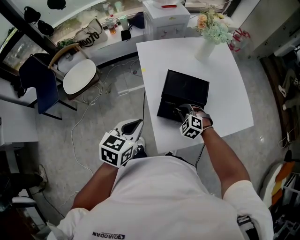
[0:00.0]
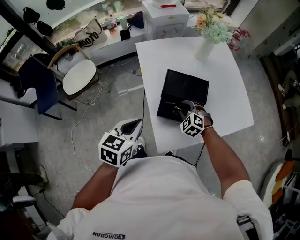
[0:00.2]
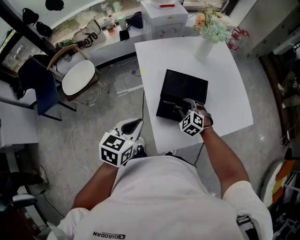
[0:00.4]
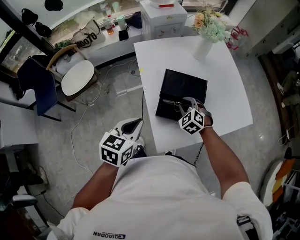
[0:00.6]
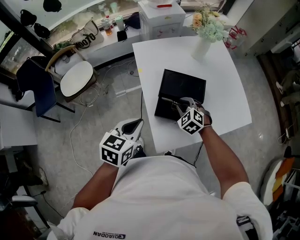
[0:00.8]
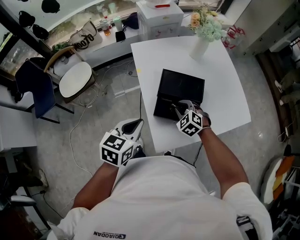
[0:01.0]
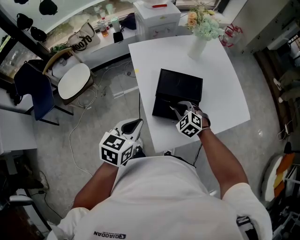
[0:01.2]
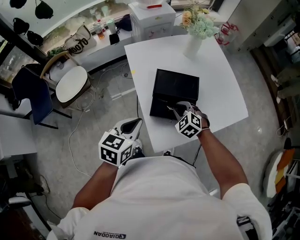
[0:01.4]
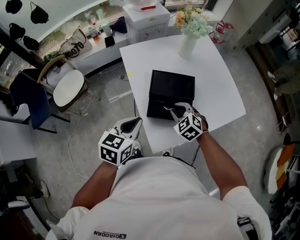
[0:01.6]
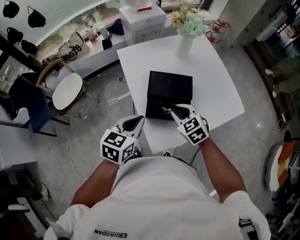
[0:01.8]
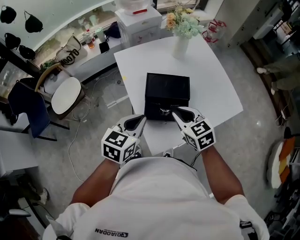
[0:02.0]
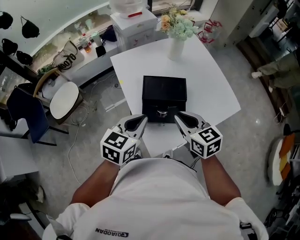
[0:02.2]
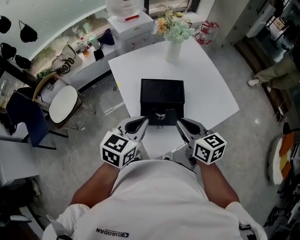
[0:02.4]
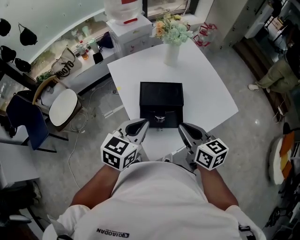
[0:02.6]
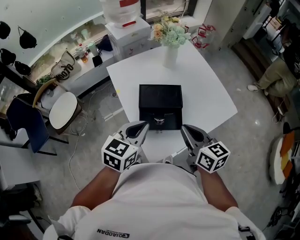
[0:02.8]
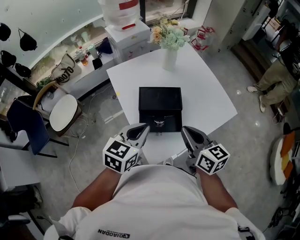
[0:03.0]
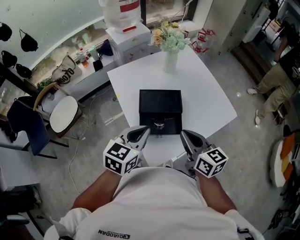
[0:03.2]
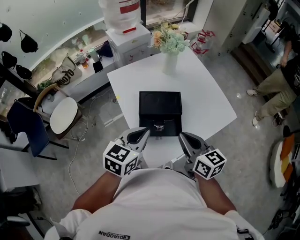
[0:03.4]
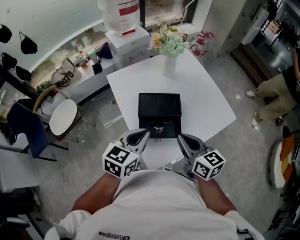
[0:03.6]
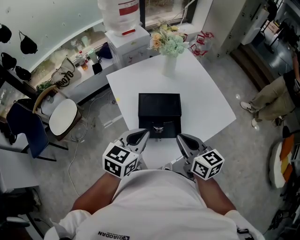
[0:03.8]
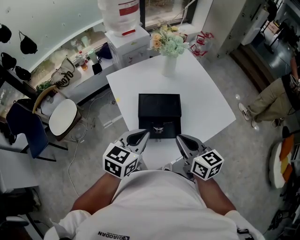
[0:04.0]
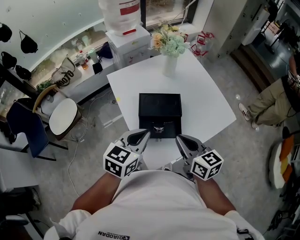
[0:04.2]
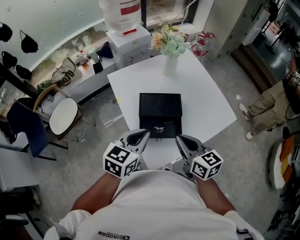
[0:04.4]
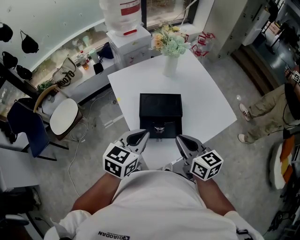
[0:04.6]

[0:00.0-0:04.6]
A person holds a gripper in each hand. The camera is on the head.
0:00.0 to 0:01.6: The right gripper moves upward, some 10 cm, and swivels roughly 20 degrees.
0:01.6 to 0:03.0: The left gripper shifts some 10 cm to the right and upward. Meanwhile the right gripper travels upward and to the right by roughly 20 cm, rolls clockwise, seen from behind, by approximately 50 degrees, and closes up.
0:03.0 to 0:04.6: The grippers stay close to where they were, moving slightly.

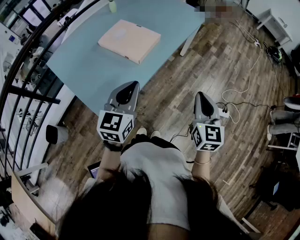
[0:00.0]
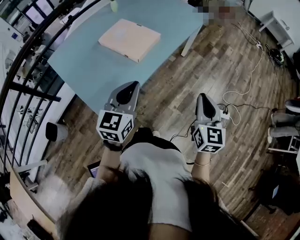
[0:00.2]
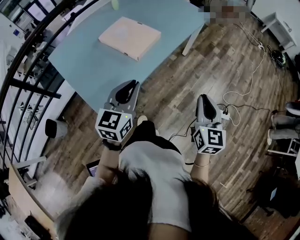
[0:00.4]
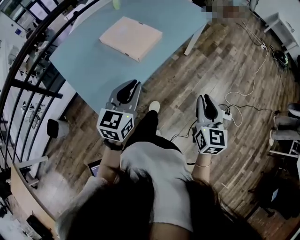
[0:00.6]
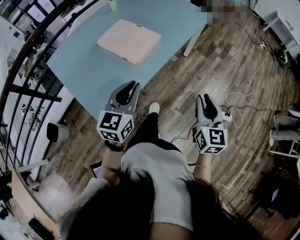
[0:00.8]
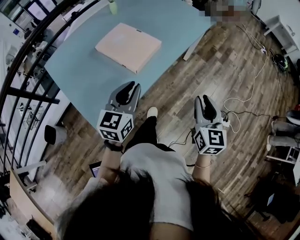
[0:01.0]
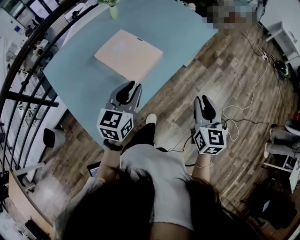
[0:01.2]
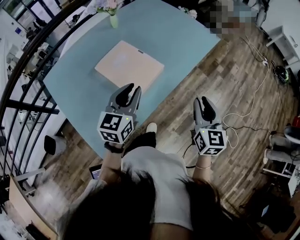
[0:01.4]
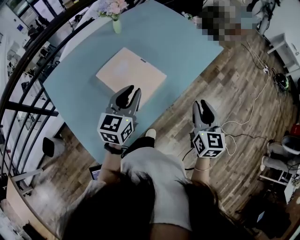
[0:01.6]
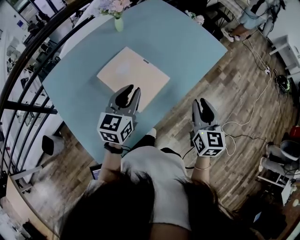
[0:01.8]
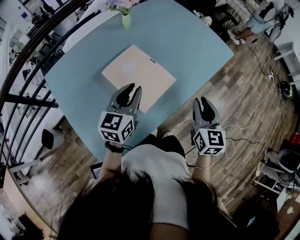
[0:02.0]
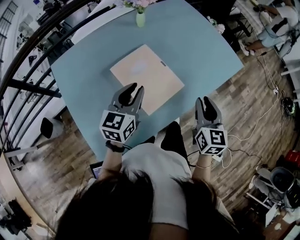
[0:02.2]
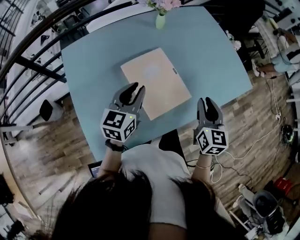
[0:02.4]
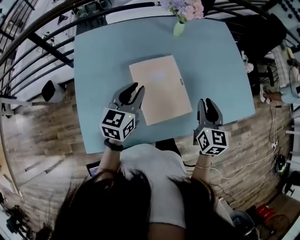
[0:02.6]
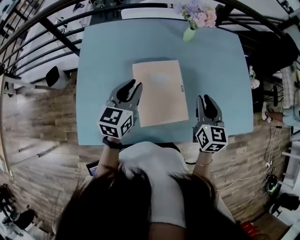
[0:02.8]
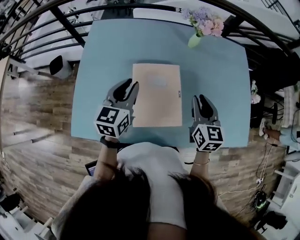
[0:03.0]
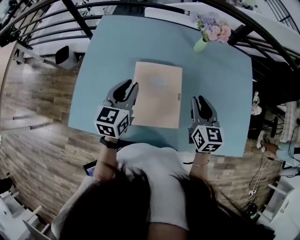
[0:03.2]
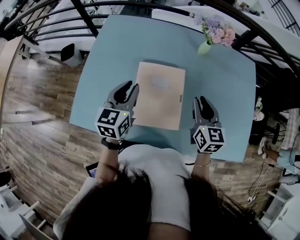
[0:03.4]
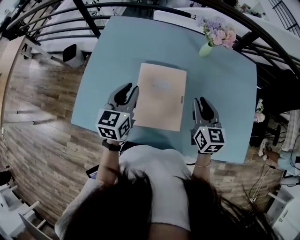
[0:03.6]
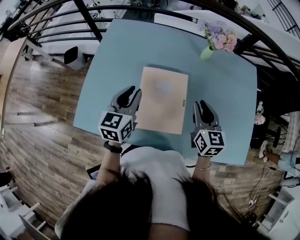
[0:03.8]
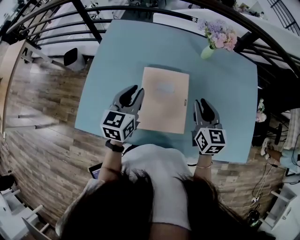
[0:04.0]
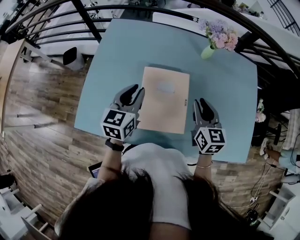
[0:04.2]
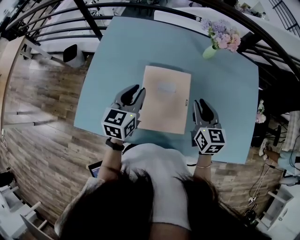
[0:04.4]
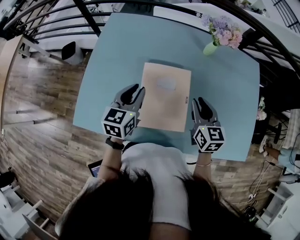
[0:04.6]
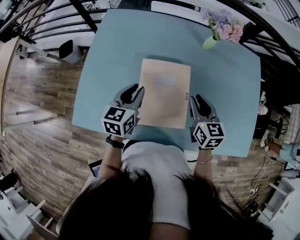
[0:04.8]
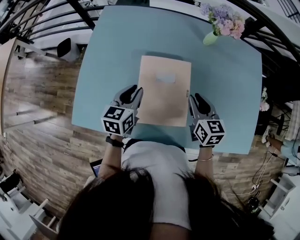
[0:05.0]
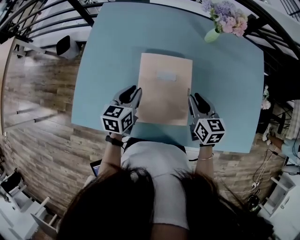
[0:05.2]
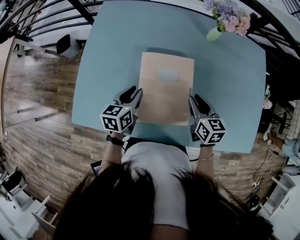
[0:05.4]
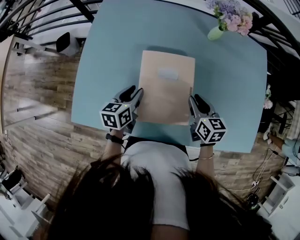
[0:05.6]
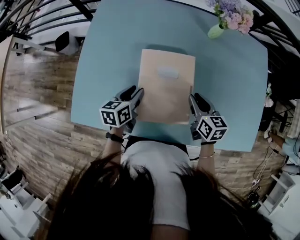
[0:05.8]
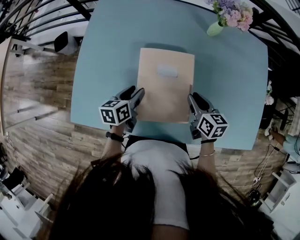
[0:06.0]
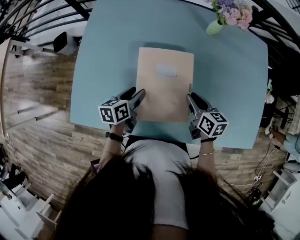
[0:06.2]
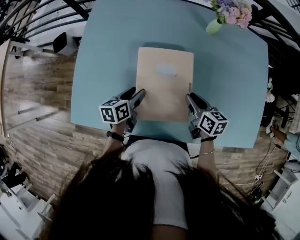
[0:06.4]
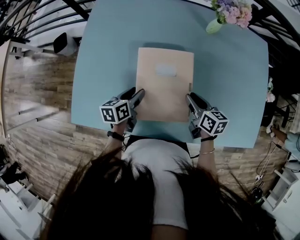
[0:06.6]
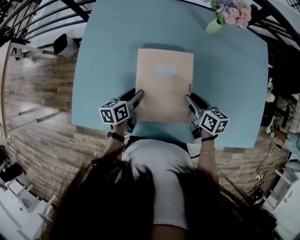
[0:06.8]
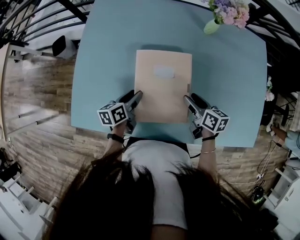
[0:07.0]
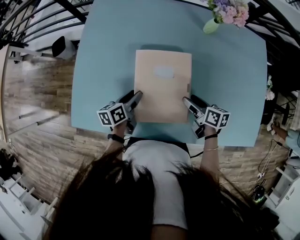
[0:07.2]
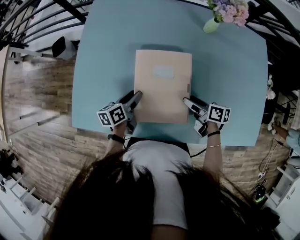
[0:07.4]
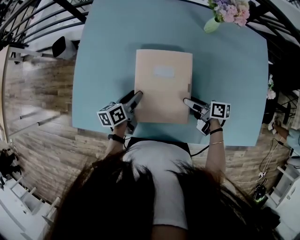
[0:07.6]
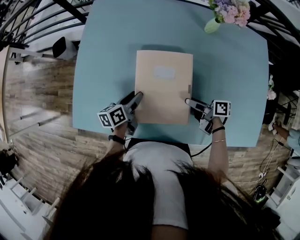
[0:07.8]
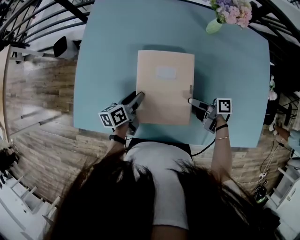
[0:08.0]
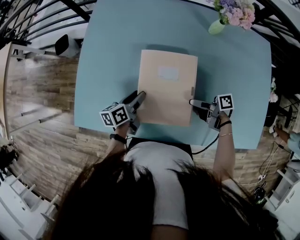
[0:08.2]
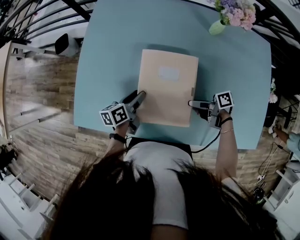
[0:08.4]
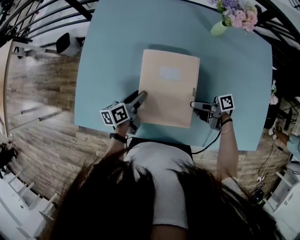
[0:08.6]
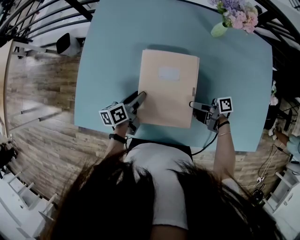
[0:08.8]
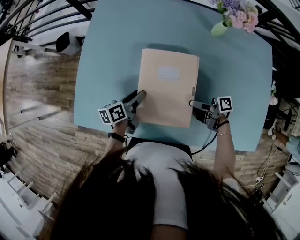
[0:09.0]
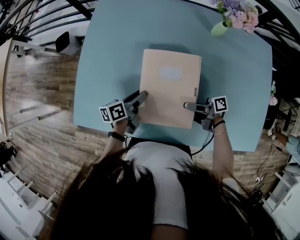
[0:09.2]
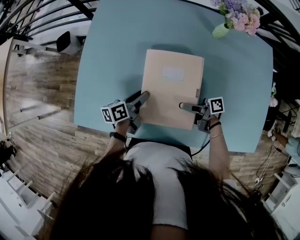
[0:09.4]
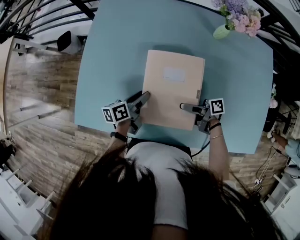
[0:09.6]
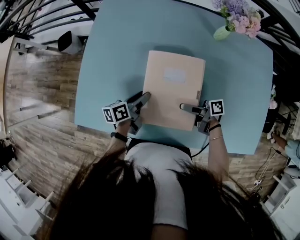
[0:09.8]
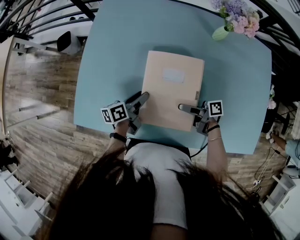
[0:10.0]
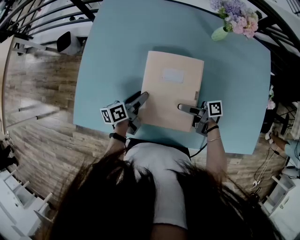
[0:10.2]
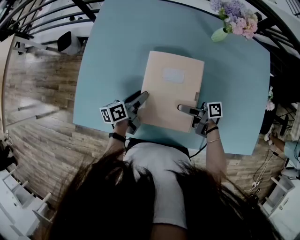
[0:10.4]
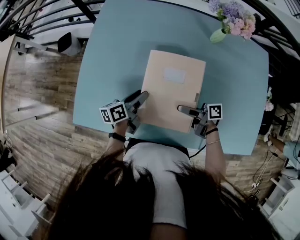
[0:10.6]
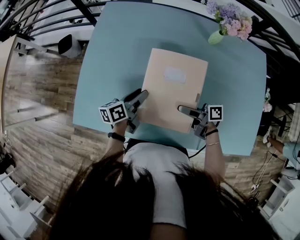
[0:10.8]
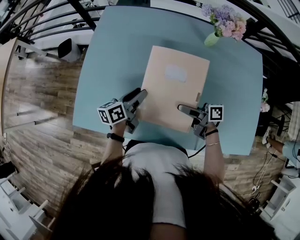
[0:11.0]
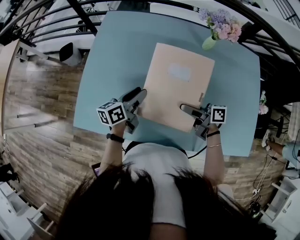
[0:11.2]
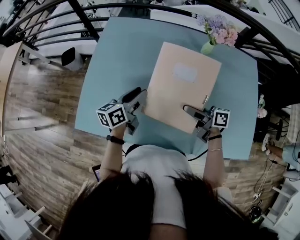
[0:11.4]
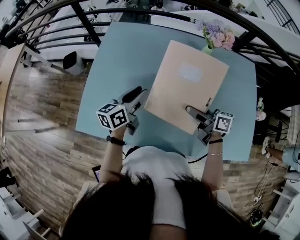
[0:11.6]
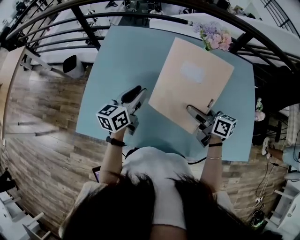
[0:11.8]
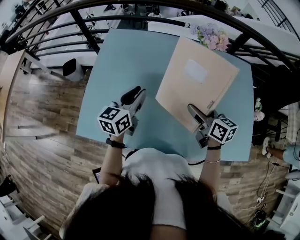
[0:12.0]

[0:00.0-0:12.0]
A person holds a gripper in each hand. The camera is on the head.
0:00.0 to 0:01.6: Both grippers move forward, about 25 cm.
0:01.6 to 0:03.0: The right gripper shifts by roughly 35 cm, and rotates approximately 50 degrees; the left gripper moves about 15 cm, and rotates about 50 degrees.
0:03.0 to 0:04.4: The grippers stay close to where they were, moving slightly.
0:04.4 to 0:06.0: The grippers both shift downward by approximately 15 cm. The left gripper changes its angle by some 30 degrees, and opens up. The right gripper rotates approximately 20 degrees.
0:06.0 to 0:07.6: The right gripper travels downward by roughly 5 cm, turns by about 40 degrees, and opens.
0:07.6 to 0:09.0: The right gripper changes its angle by roughly 30 degrees.
0:09.0 to 0:10.4: The right gripper heads to the left, covering approximately 5 cm.
0:10.4 to 0:12.0: The right gripper heads upward and to the right, covering about 20 cm, and turns by some 60 degrees. Meanwhile the left gripper is displaced upward by roughly 20 cm, rolls clockwise, seen from behind, by some 40 degrees, and closes.

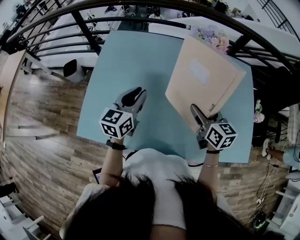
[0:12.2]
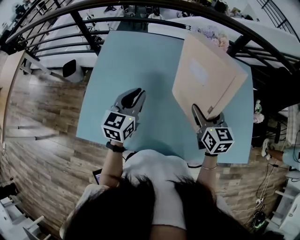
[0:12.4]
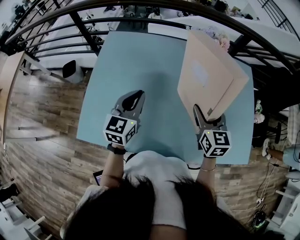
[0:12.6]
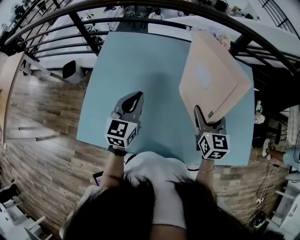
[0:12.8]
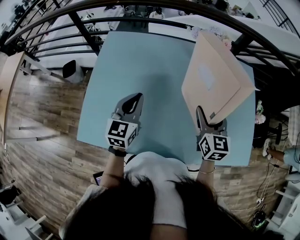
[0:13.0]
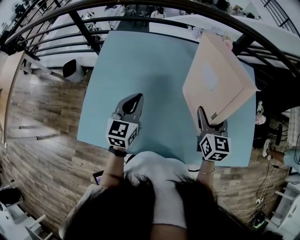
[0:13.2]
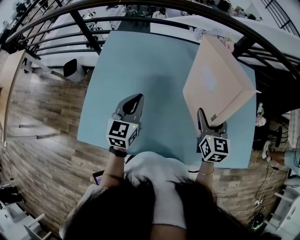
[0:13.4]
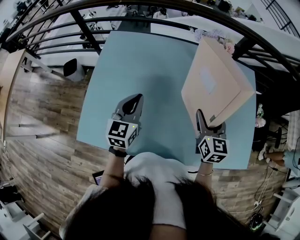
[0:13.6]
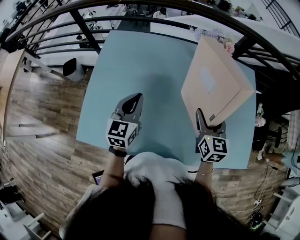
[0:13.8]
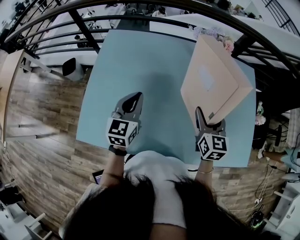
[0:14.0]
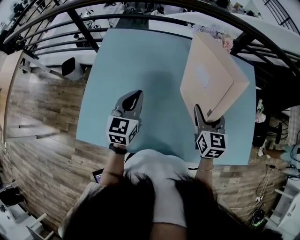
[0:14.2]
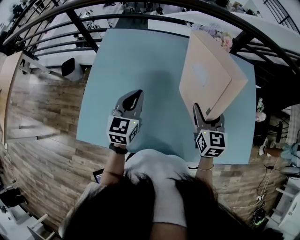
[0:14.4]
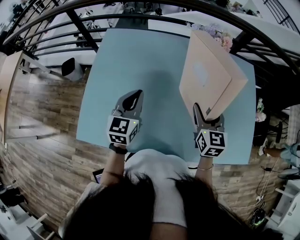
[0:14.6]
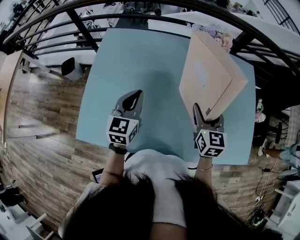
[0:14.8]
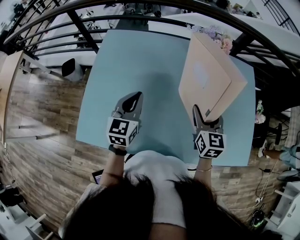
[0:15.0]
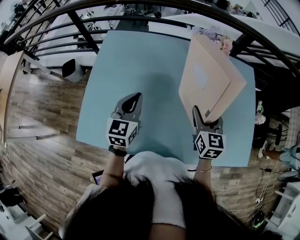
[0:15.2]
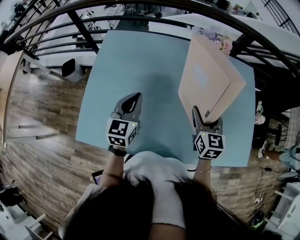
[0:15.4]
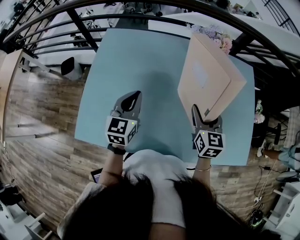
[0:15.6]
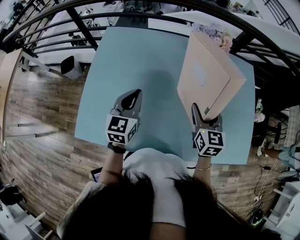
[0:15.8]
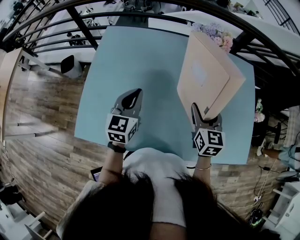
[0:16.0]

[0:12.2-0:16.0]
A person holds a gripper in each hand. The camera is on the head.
0:12.2 to 0:13.4: The right gripper swivels approximately 20 degrees.
0:13.4 to 0:14.8: There are only small adjustments of the grippers.
0:14.8 to 0:16.0: Neither gripper changes place.

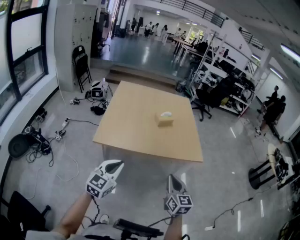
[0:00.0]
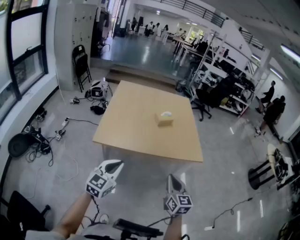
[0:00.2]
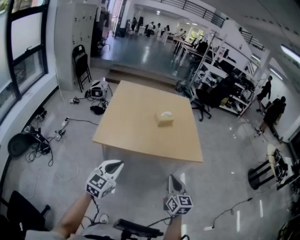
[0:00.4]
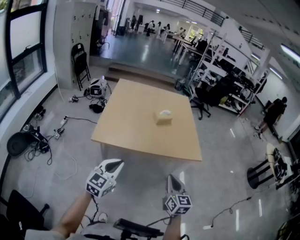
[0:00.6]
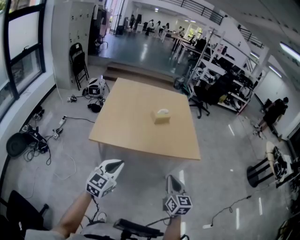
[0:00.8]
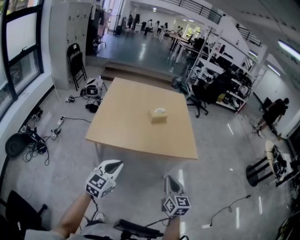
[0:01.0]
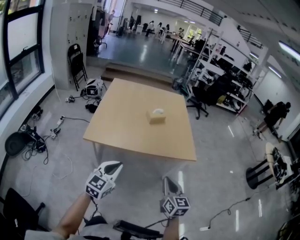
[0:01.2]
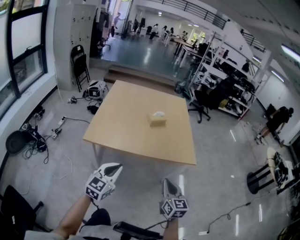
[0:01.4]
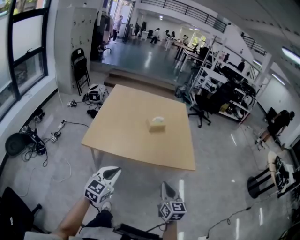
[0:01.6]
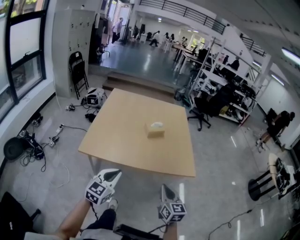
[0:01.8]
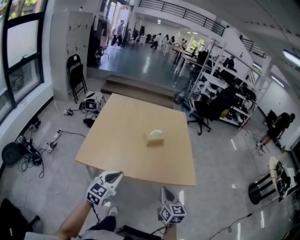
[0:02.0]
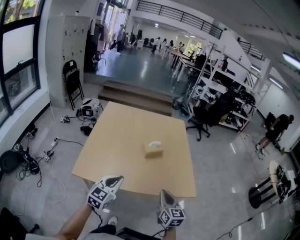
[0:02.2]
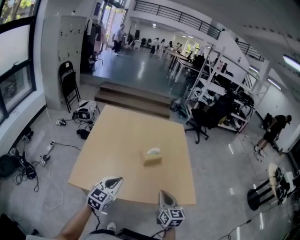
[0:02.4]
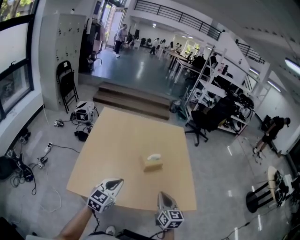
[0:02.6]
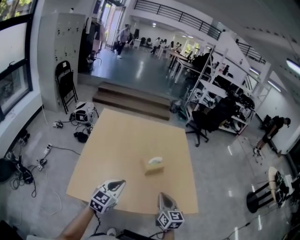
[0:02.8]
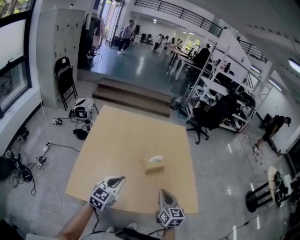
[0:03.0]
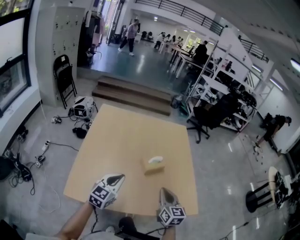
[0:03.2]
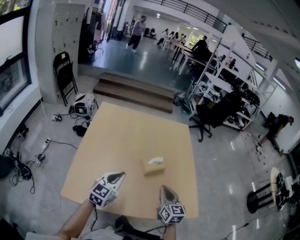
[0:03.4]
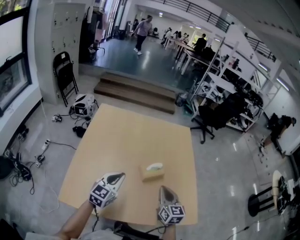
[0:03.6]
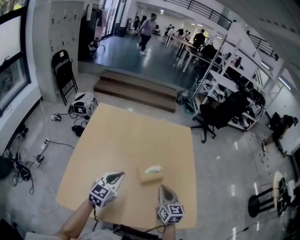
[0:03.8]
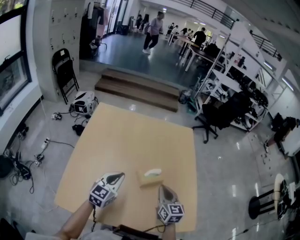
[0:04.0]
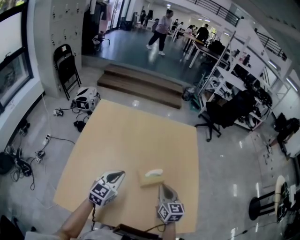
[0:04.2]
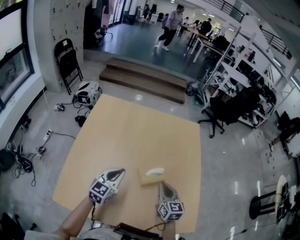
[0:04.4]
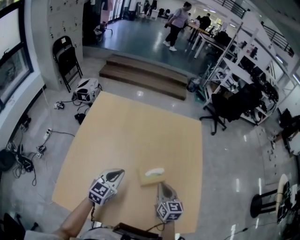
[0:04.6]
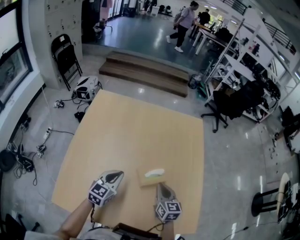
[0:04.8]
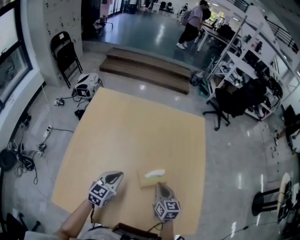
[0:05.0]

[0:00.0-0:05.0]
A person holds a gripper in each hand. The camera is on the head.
0:00.0 to 0:01.6: Both grippers move to the right, about 5 cm.
0:01.6 to 0:03.4: Both grippers travel together forward, about 35 cm.
0:03.4 to 0:05.0: Both grippers move forward and downward, approximately 20 cm.
